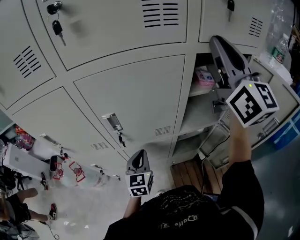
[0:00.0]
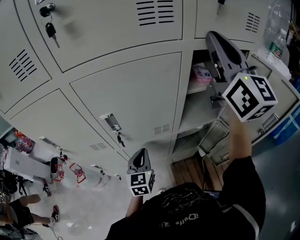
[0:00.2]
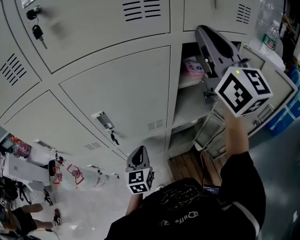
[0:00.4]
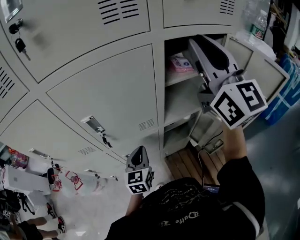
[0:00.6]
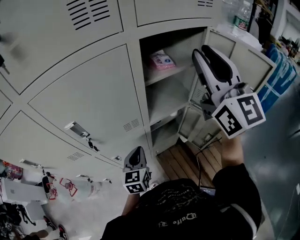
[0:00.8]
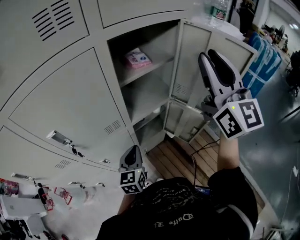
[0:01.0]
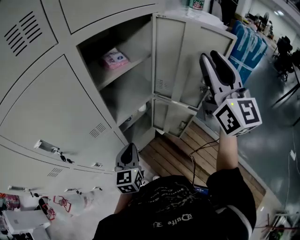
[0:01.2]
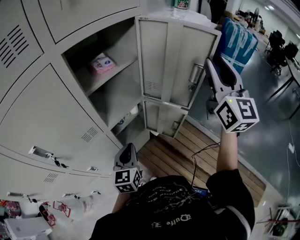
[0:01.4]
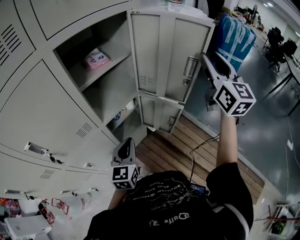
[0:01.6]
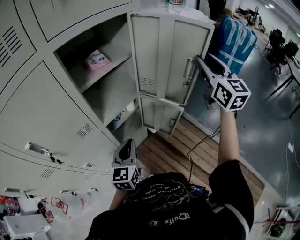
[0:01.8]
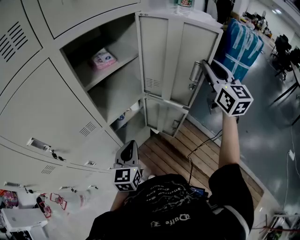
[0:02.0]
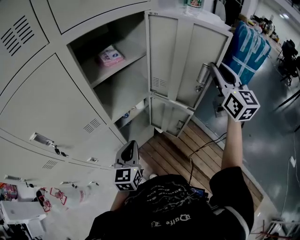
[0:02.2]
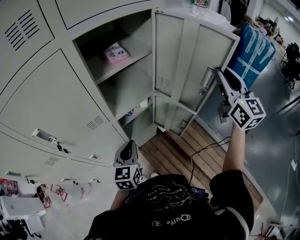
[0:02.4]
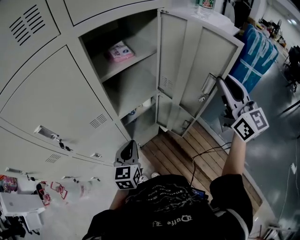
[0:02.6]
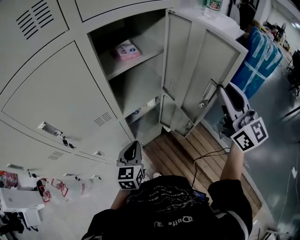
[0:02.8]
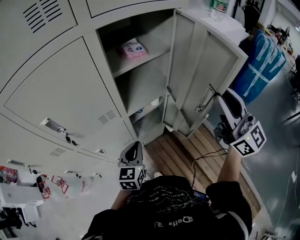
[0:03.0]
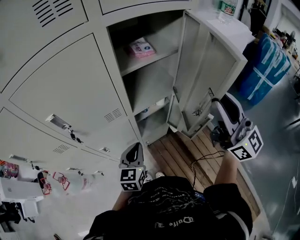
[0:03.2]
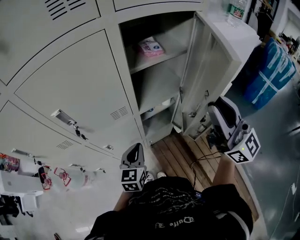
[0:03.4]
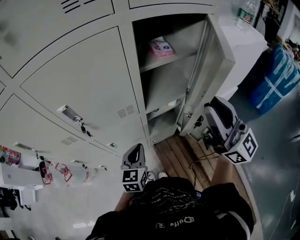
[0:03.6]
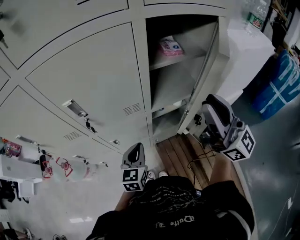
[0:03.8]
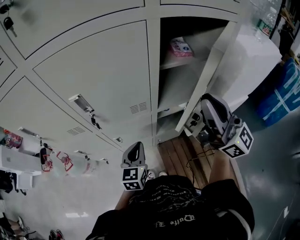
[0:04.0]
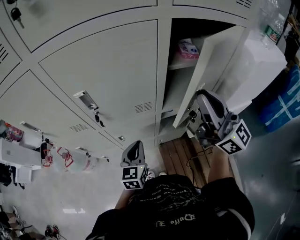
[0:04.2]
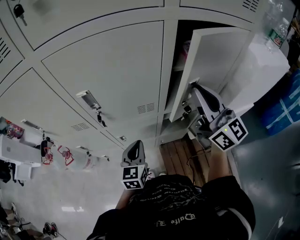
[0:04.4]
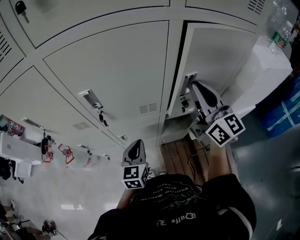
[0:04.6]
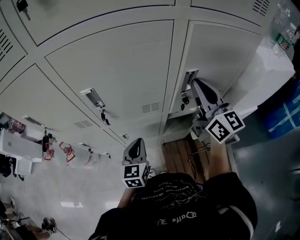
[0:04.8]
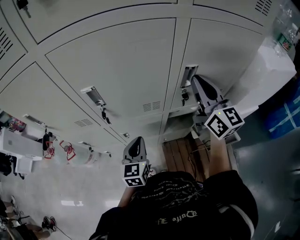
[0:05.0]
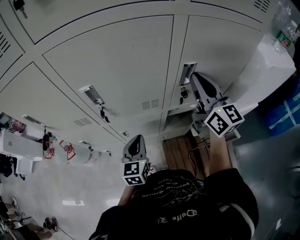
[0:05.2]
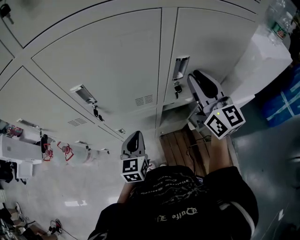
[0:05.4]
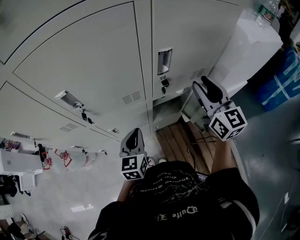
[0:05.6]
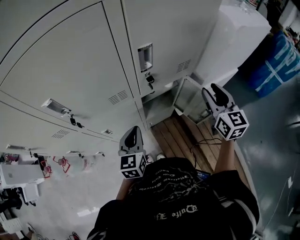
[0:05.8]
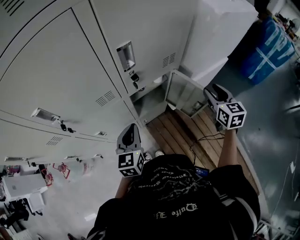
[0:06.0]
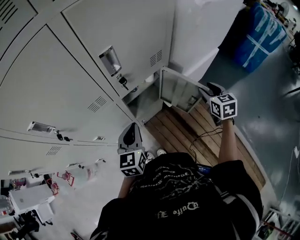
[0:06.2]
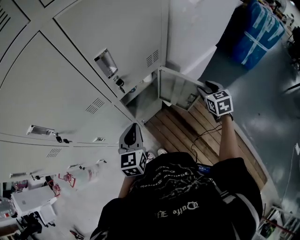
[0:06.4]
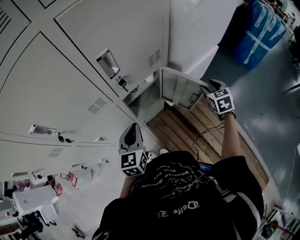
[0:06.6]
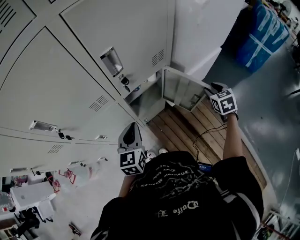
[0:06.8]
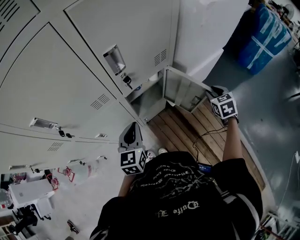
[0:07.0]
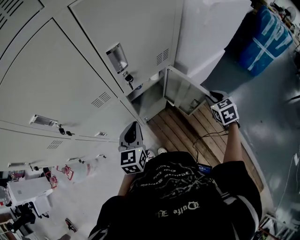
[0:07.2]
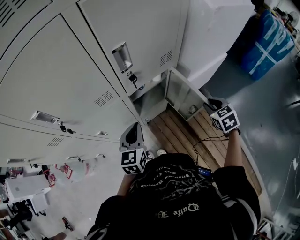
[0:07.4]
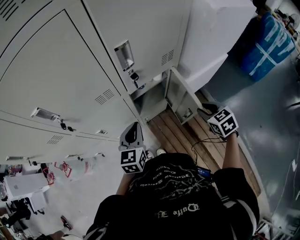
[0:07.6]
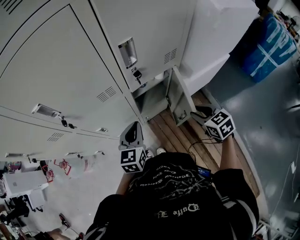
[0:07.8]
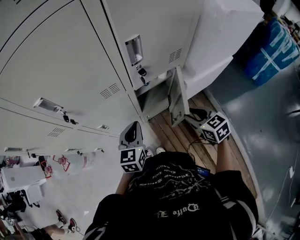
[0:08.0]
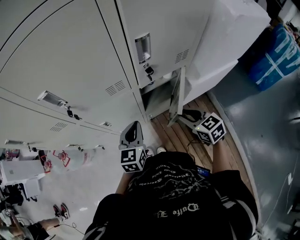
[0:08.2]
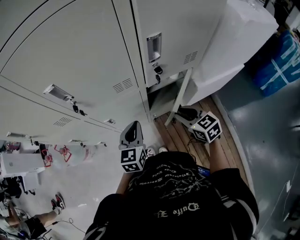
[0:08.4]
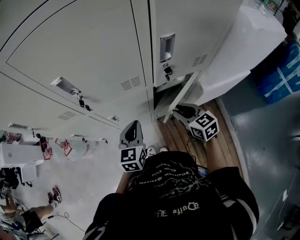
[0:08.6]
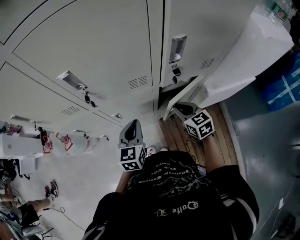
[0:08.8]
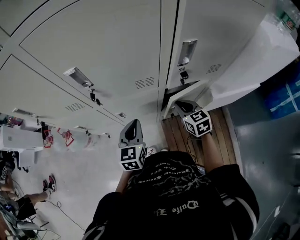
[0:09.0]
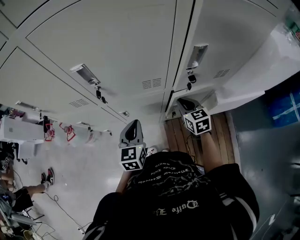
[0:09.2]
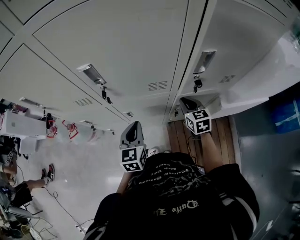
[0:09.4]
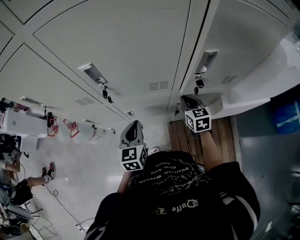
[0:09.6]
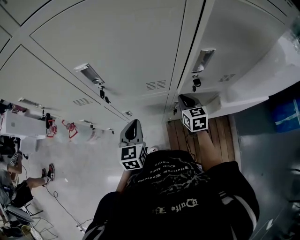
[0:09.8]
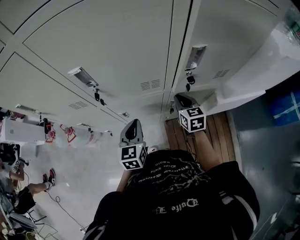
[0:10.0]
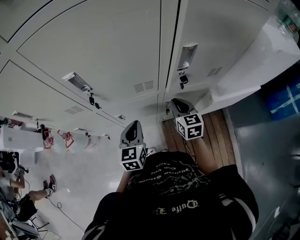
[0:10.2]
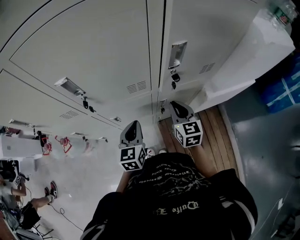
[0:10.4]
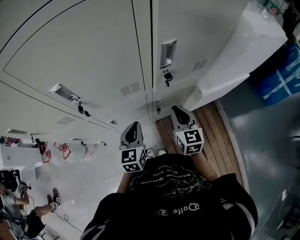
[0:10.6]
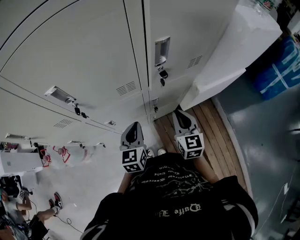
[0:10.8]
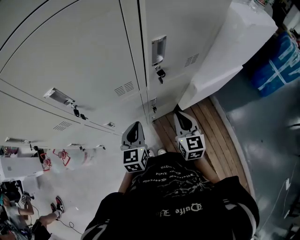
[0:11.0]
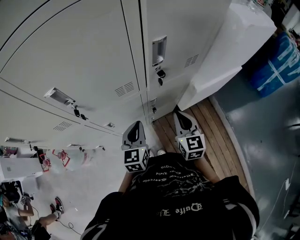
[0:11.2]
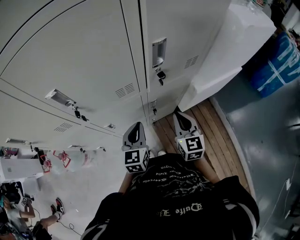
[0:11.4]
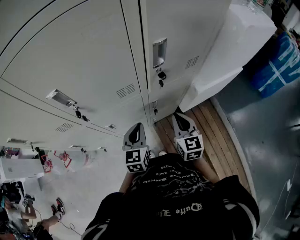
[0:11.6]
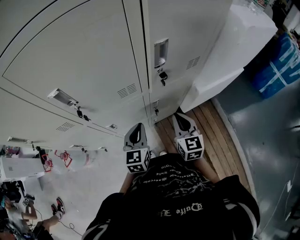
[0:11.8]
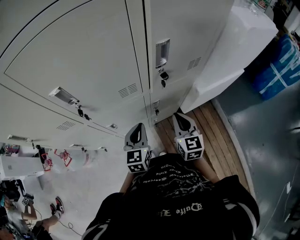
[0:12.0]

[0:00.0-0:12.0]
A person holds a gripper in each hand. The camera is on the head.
0:00.0 to 0:01.6: The left gripper shifts by about 25 cm, and turns by about 40 degrees, while the right gripper ends up some 40 cm from where it was, turns by approximately 40 degrees, and opens up.
0:01.6 to 0:03.0: The right gripper shifts some 15 cm to the left and backward, and swivels about 40 degrees, while the left gripper heads to the left, covering roughly 5 cm.
0:03.0 to 0:04.4: The left gripper travels to the left by approximately 10 cm, and swivels about 20 degrees, while the right gripper is displaced to the left and forward by roughly 20 cm, rotates approximately 20 degrees, and closes up.
0:04.4 to 0:06.0: The right gripper moves some 35 cm, tilts its fingers roughly 40 degrees downward, and opens. The left gripper ends up roughly 10 cm from where it was.
0:06.0 to 0:07.6: The right gripper shifts roughly 10 cm downward and backward, goes to the right and returns, roughly 5 cm each way, and changes its angle by approximately 30 degrees.
0:07.6 to 0:09.0: The left gripper travels to the left by some 10 cm, and turns by approximately 20 degrees, while the right gripper shifts roughly 25 cm to the left and forward, and rotates about 20 degrees.
0:09.0 to 0:10.4: The right gripper changes its angle by roughly 20 degrees.
0:10.4 to 0:12.0: The right gripper goes roughly 5 cm backward.

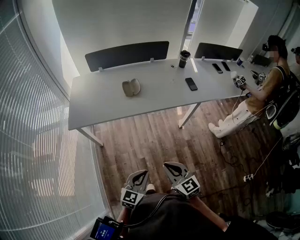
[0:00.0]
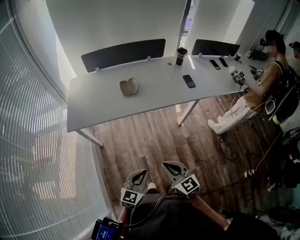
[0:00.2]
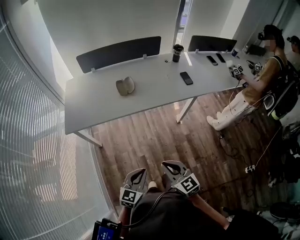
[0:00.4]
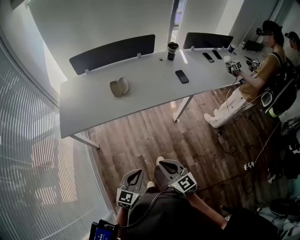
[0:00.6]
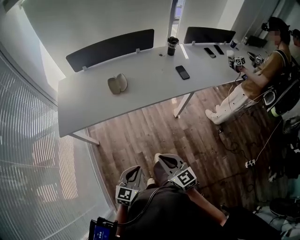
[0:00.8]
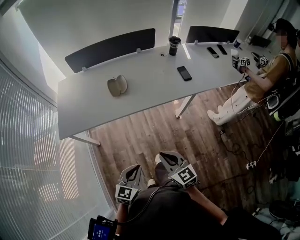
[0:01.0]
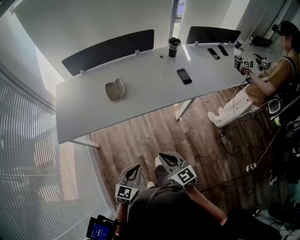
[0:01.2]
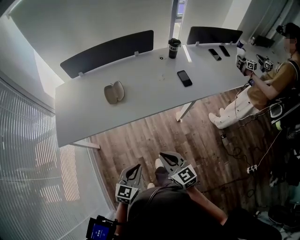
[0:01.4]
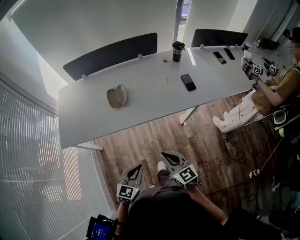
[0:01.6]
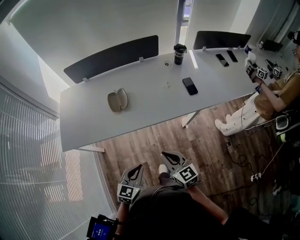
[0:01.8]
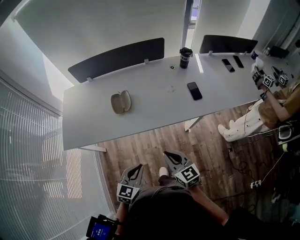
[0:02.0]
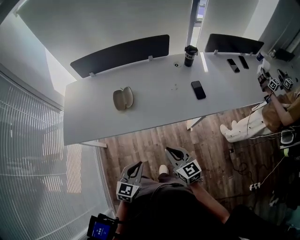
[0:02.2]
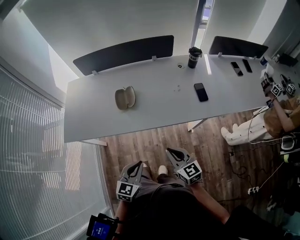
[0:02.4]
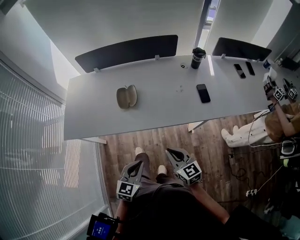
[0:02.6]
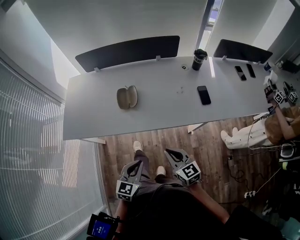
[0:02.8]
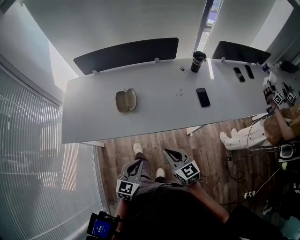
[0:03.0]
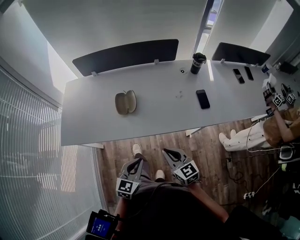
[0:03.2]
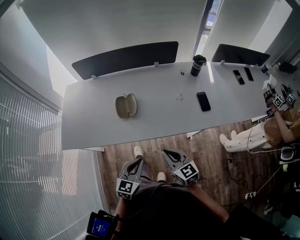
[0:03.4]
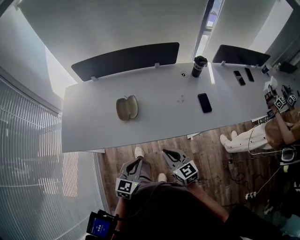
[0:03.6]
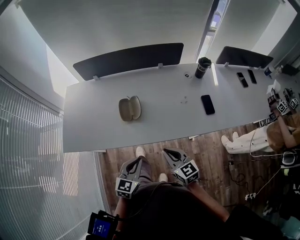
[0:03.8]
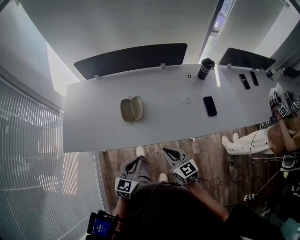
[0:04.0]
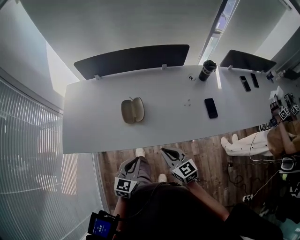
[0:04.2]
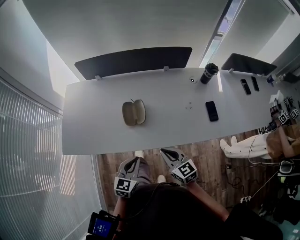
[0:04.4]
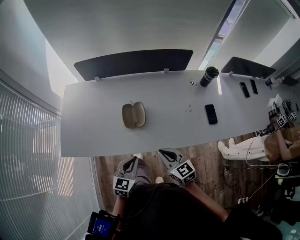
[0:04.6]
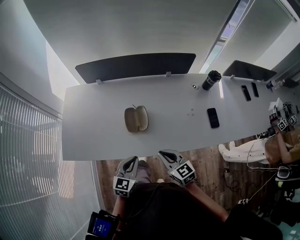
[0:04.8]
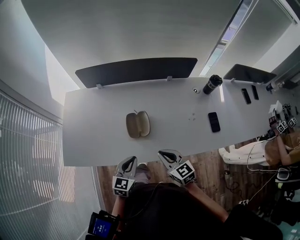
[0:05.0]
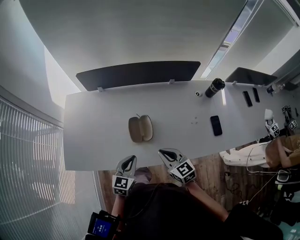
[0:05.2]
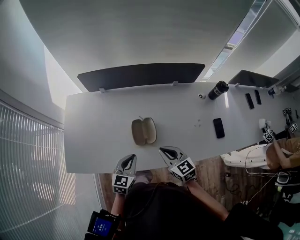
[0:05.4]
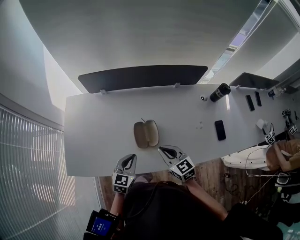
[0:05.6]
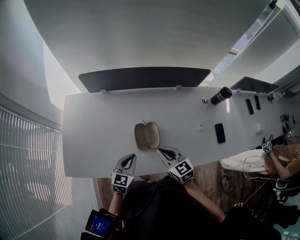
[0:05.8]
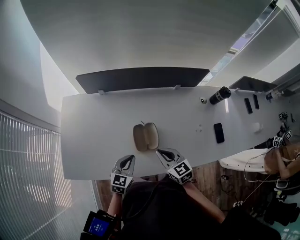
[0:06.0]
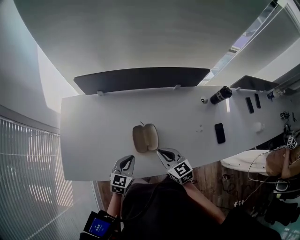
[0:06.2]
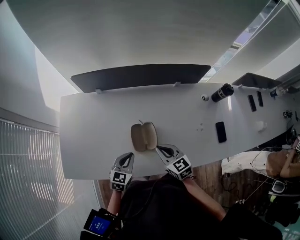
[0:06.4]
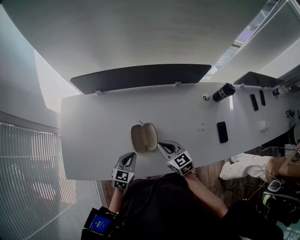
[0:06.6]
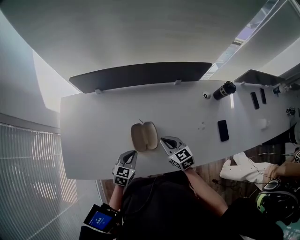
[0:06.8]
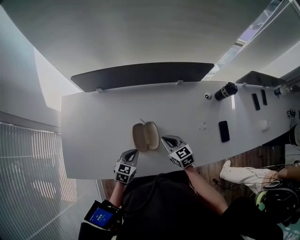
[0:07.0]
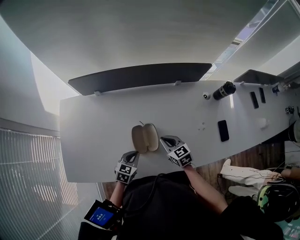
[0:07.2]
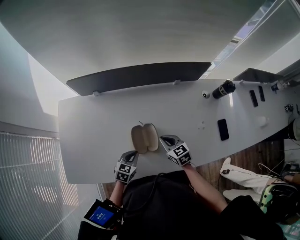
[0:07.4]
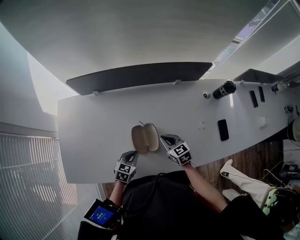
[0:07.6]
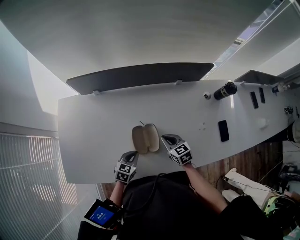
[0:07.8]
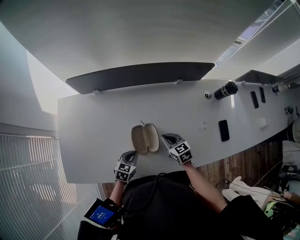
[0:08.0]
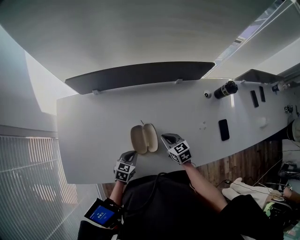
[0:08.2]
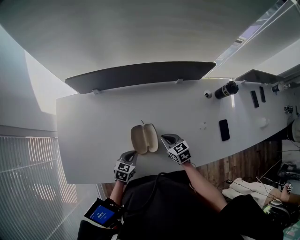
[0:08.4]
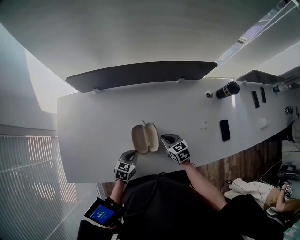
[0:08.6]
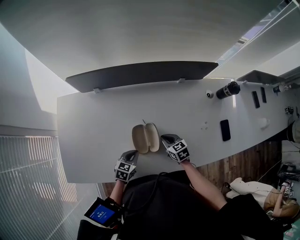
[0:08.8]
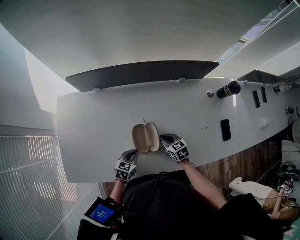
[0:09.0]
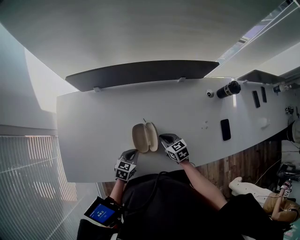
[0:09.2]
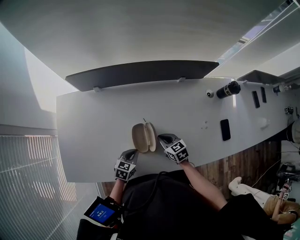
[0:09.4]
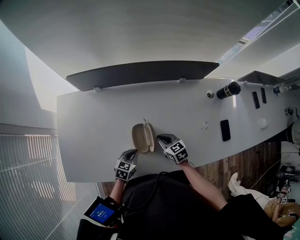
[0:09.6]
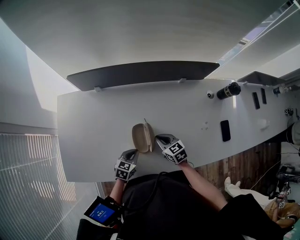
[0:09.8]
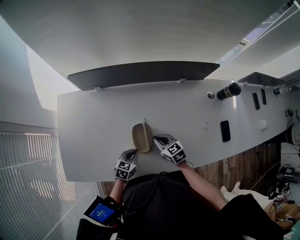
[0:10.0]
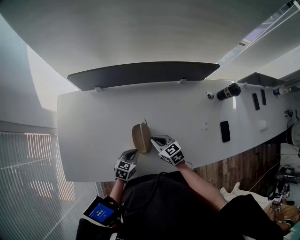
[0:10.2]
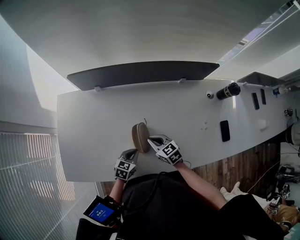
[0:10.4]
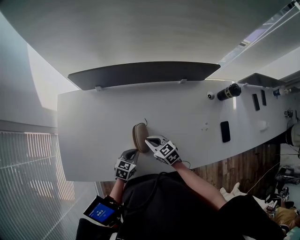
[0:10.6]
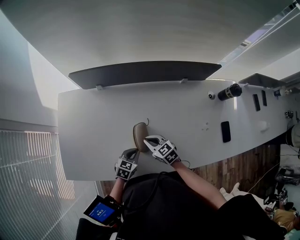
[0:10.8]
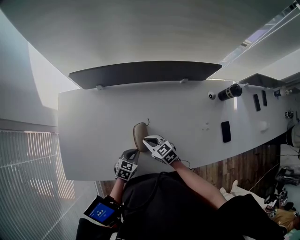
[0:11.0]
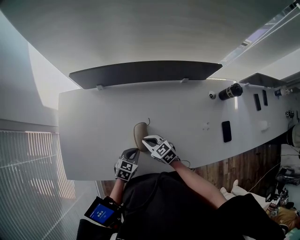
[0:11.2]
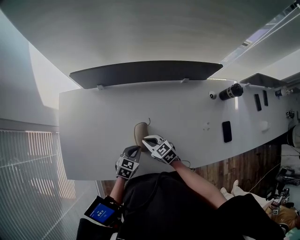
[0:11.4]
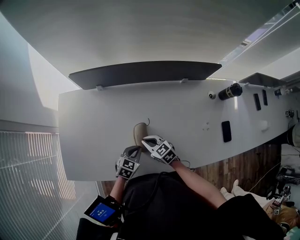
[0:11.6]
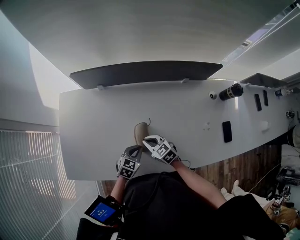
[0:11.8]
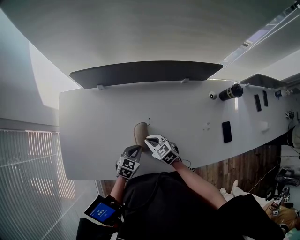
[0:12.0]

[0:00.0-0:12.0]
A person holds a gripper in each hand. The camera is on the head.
0:00.0 to 0:01.6: The left gripper goes roughly 20 cm forward, while the right gripper is displaced forward and to the right by approximately 25 cm.
0:01.6 to 0:03.0: The two grippers go roughly 10 cm forward.
0:03.0 to 0:04.4: Both grippers travel together forward and to the left, some 15 cm.
0:04.4 to 0:06.0: The two grippers go some 20 cm forward and to the left.
0:06.0 to 0:07.6: The right gripper goes approximately 15 cm downward, forward and to the right. Meanwhile the left gripper shifts roughly 10 cm downward.
0:07.6 to 0:09.0: The right gripper travels downward by some 5 cm.
0:09.0 to 0:10.4: The right gripper is displaced to the left by some 5 cm.
0:10.4 to 0:12.0: The grippers make only small movements.
